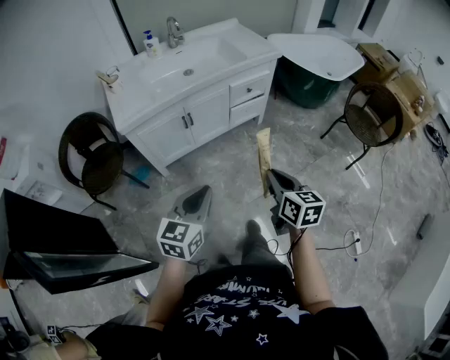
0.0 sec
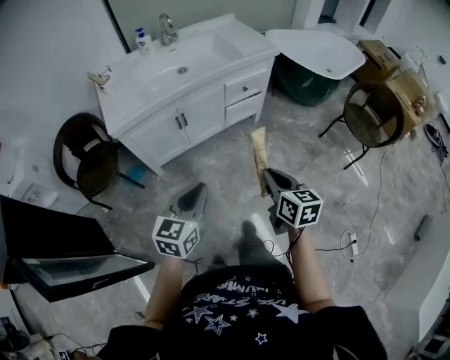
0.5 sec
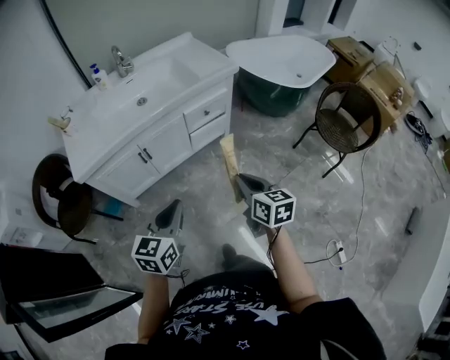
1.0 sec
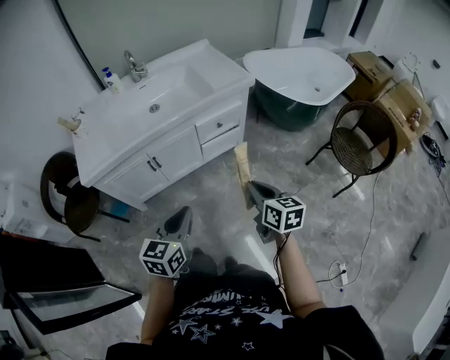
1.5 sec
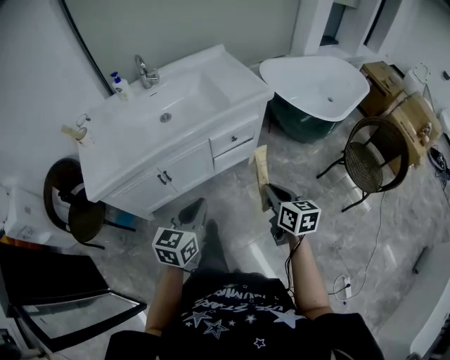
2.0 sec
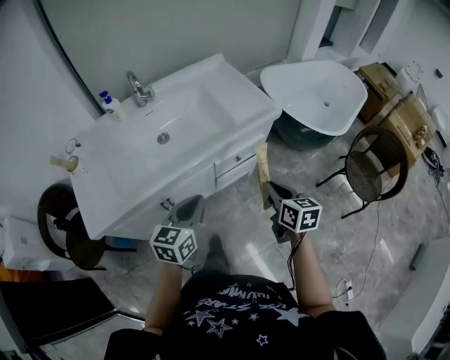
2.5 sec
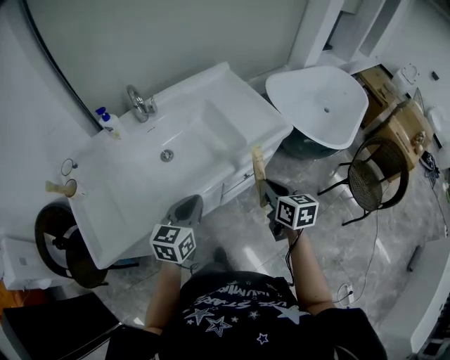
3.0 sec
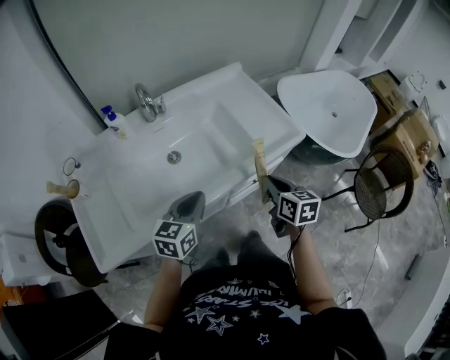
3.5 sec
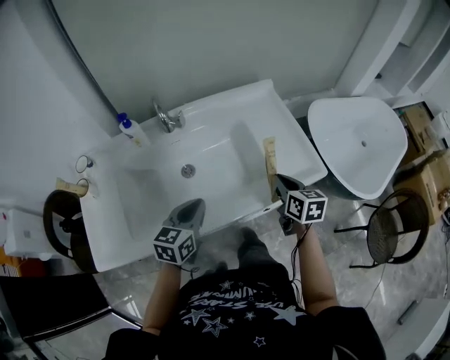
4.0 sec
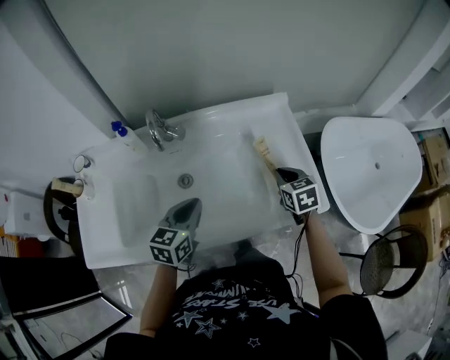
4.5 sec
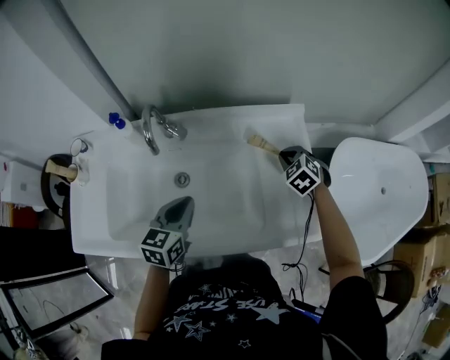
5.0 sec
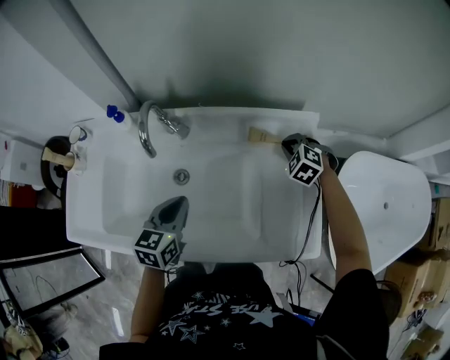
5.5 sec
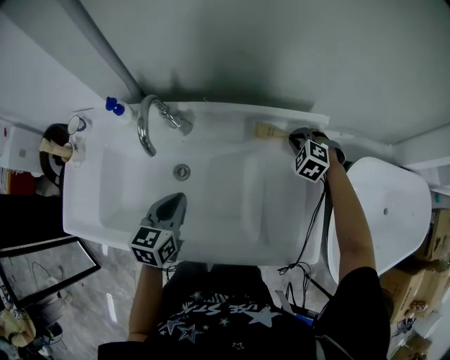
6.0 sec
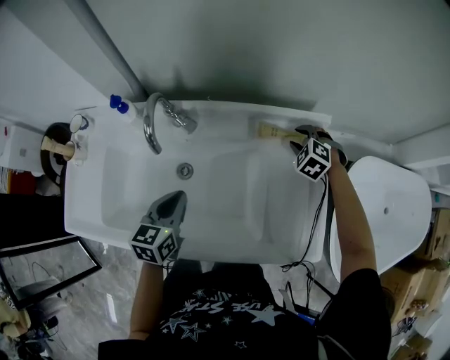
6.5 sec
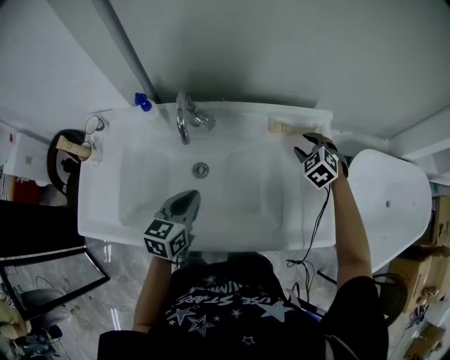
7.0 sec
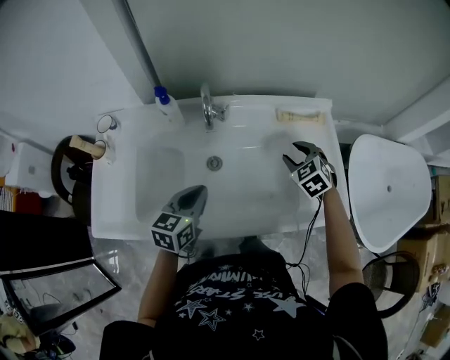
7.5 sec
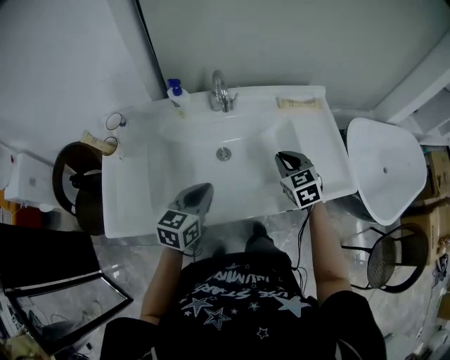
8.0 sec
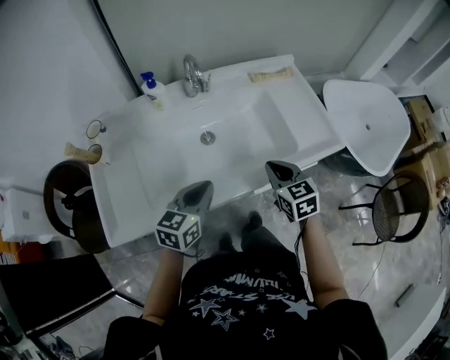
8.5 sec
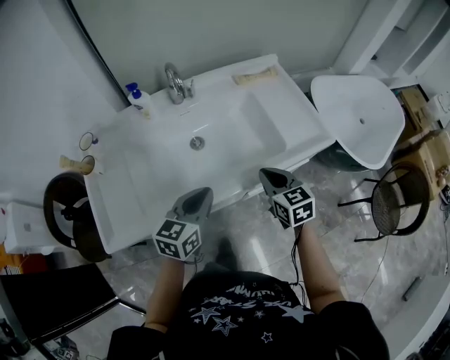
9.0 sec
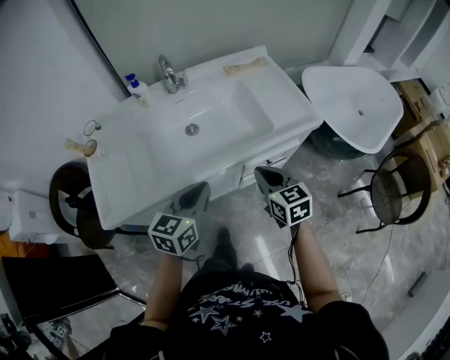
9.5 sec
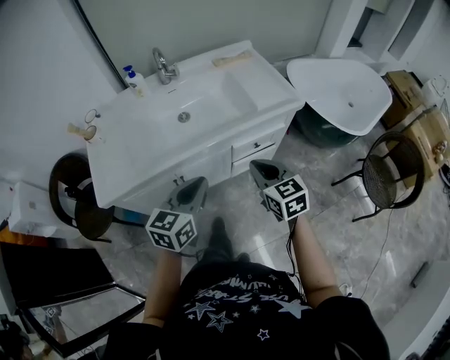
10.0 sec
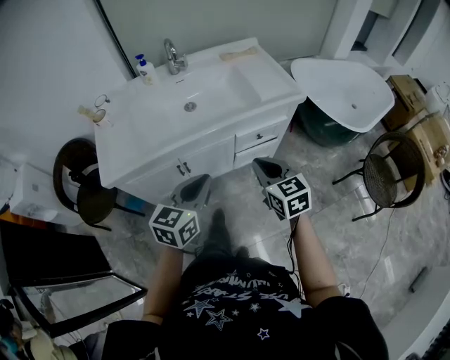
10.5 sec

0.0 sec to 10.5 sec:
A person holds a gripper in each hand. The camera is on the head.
0.0 sec to 2.0 sec: The two grippers go some 30 cm forward.
2.0 sec to 4.0 sec: The right gripper is displaced forward by roughly 40 cm. The left gripper is displaced forward and to the left by approximately 40 cm.
4.0 sec to 6.5 sec: The right gripper moves forward, approximately 35 cm, twists some 90 degrees counterclockwise, seen from behind, and opens its fingers; the left gripper shifts approximately 15 cm forward, and rotates roughly 30 degrees.
6.5 sec to 8.5 sec: The right gripper goes some 40 cm backward and to the left, rolls clockwise, seen from behind, by roughly 60 degrees, and closes its fingers. Meanwhile the left gripper goes about 20 cm backward and to the left, and rotates about 30 degrees.
8.5 sec to 10.5 sec: The left gripper heads backward and to the right, covering approximately 25 cm. The right gripper shifts roughly 25 cm backward.

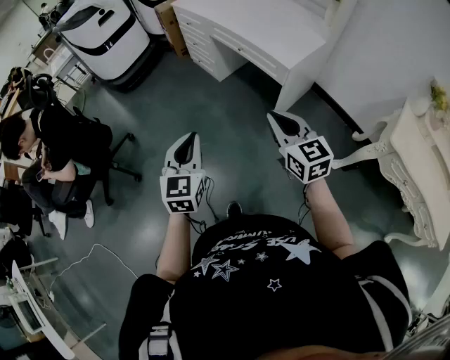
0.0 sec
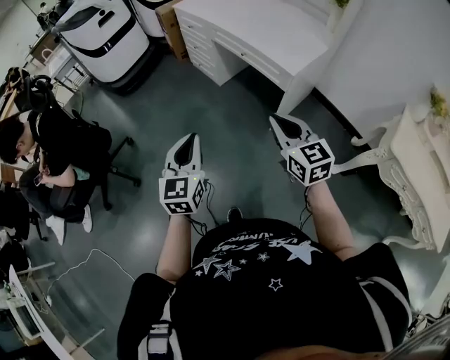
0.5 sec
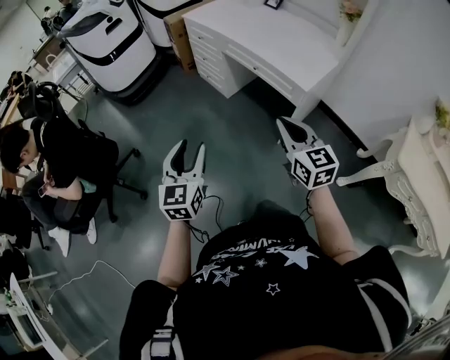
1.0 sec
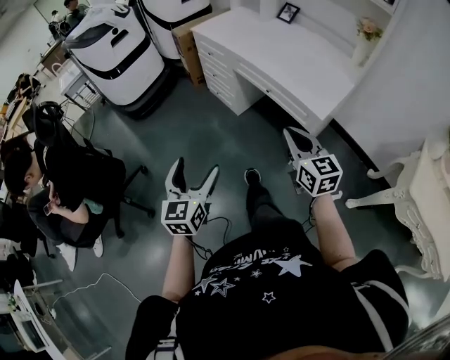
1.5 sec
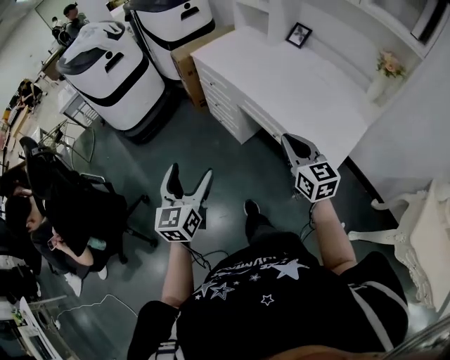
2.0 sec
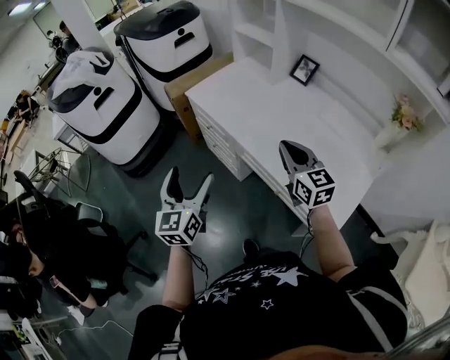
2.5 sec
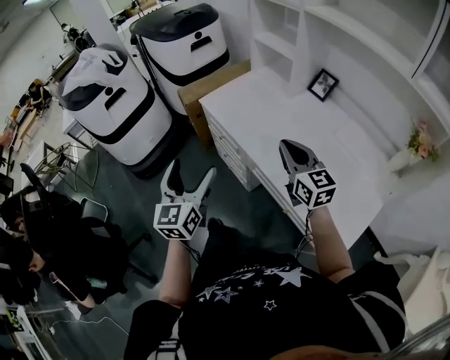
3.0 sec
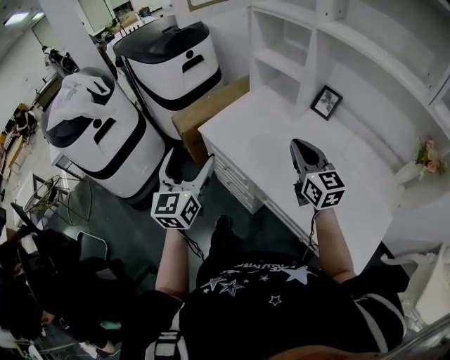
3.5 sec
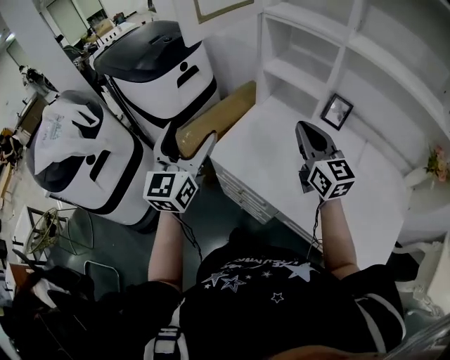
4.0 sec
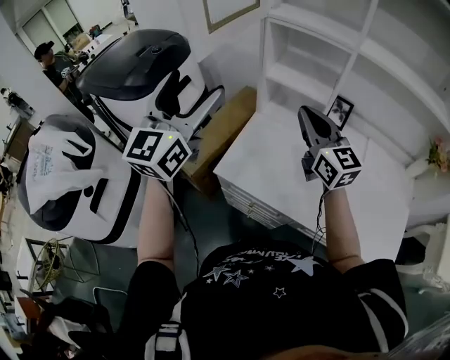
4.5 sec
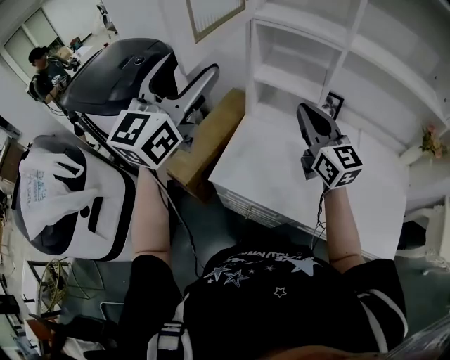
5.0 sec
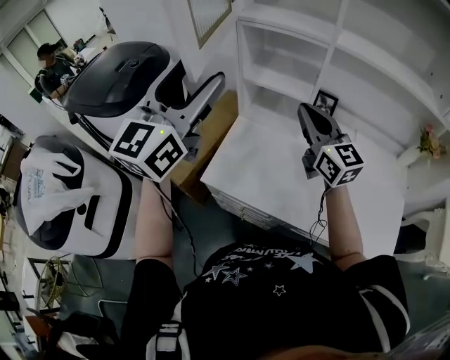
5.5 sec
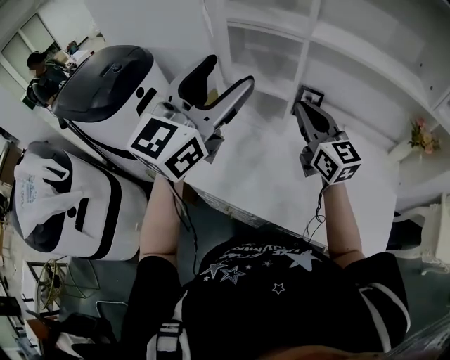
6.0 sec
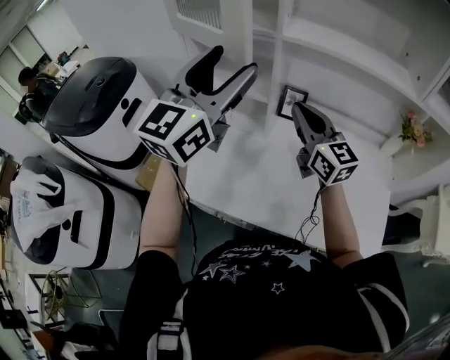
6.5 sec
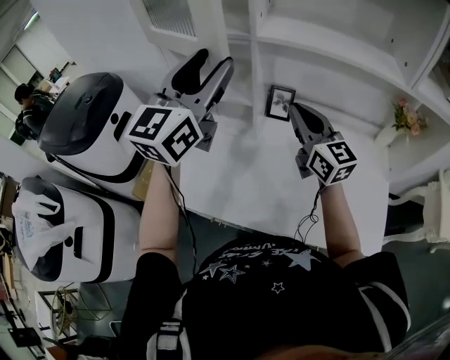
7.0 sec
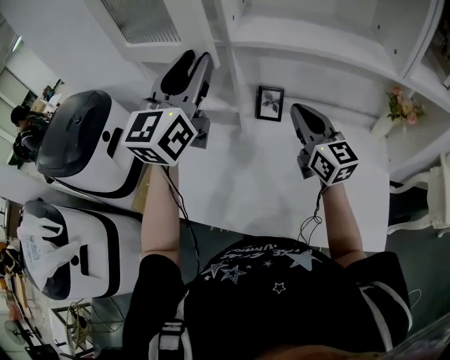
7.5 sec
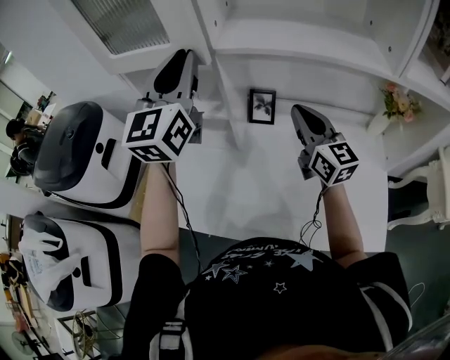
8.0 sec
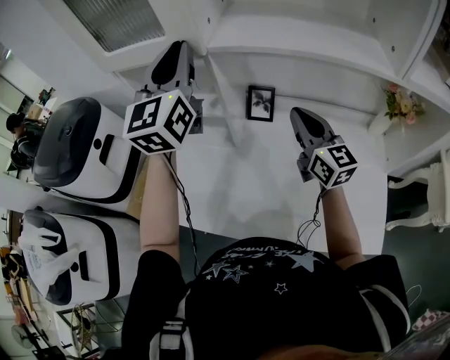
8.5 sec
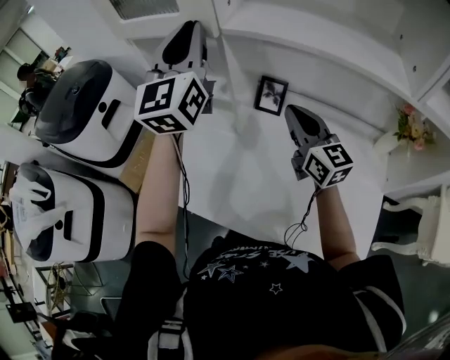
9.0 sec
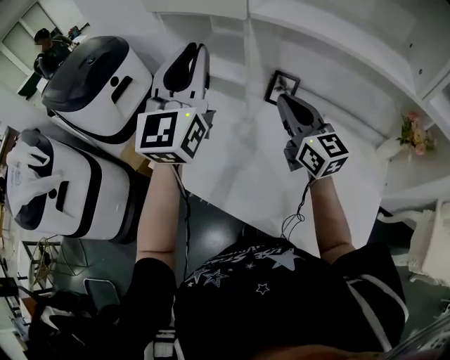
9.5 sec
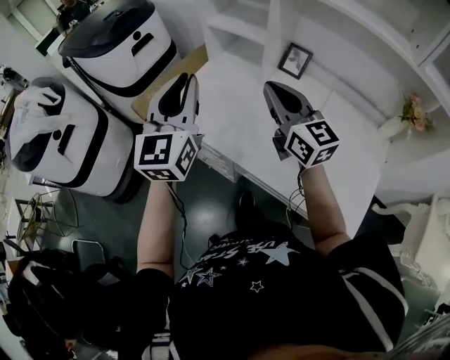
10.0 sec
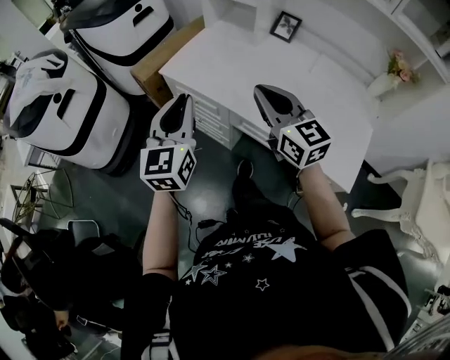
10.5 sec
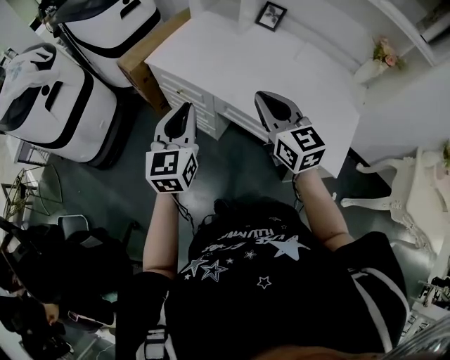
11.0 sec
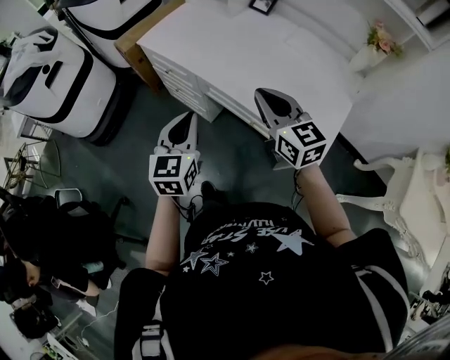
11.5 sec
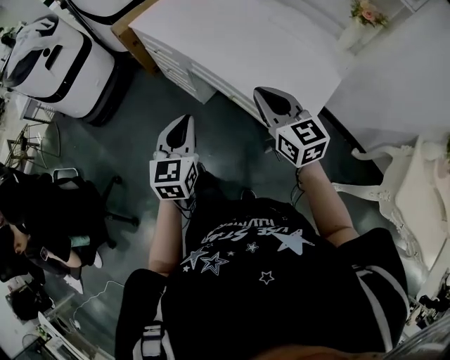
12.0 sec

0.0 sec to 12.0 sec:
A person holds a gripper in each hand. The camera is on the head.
0.0 sec to 2.0 sec: Both grippers travel together forward, approximately 40 cm. The left gripper opens its fingers.
2.0 sec to 4.0 sec: The two grippers travel together, forward, some 60 cm. The left gripper rotates roughly 30 degrees.
4.0 sec to 6.0 sec: The right gripper goes some 10 cm forward and to the right. Meanwhile the left gripper is displaced to the right, upward and forward by approximately 25 cm, and swivels about 40 degrees.
6.0 sec to 8.0 sec: The right gripper is displaced to the right by about 20 cm, while the left gripper is displaced forward and to the right by roughly 20 cm, and closes its fingers.
8.0 sec to 10.0 sec: The right gripper changes place by about 25 cm, and changes its angle by roughly 30 degrees, while the left gripper shifts by about 35 cm, and swivels approximately 30 degrees.
10.0 sec to 12.0 sec: The pair of grippers is taken backward, about 50 cm. The left gripper shifts some 20 cm downward, and rotates about 30 degrees.

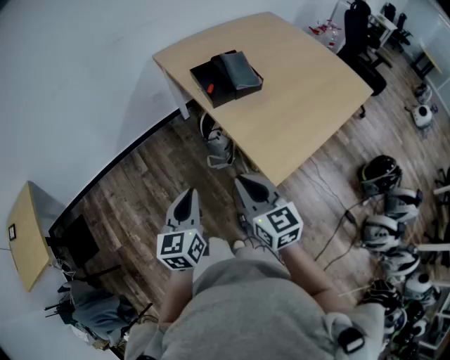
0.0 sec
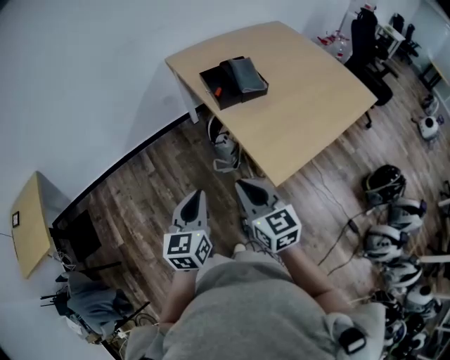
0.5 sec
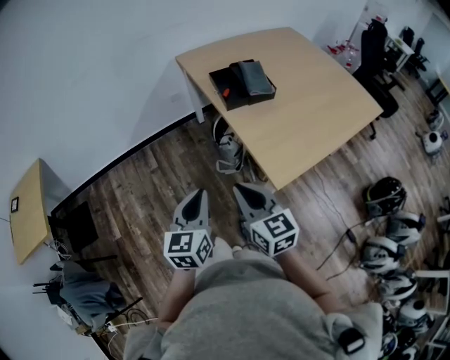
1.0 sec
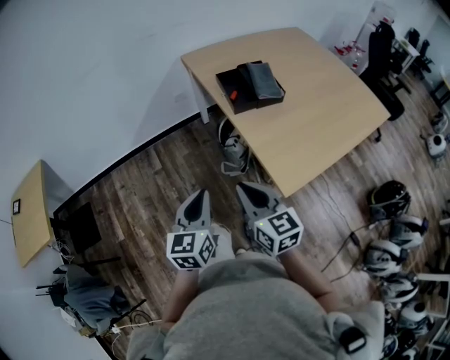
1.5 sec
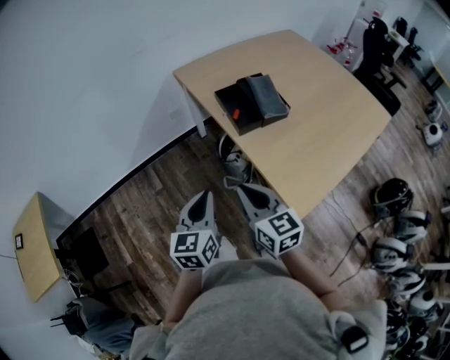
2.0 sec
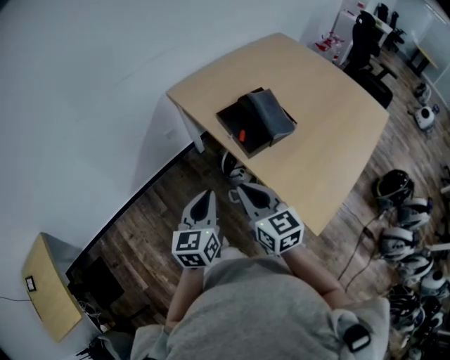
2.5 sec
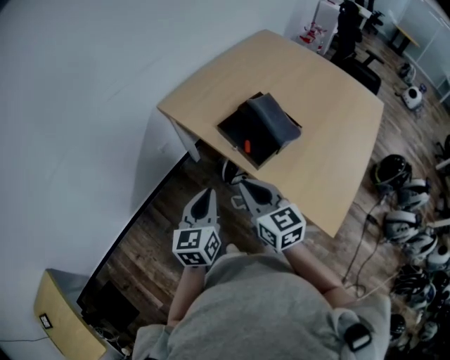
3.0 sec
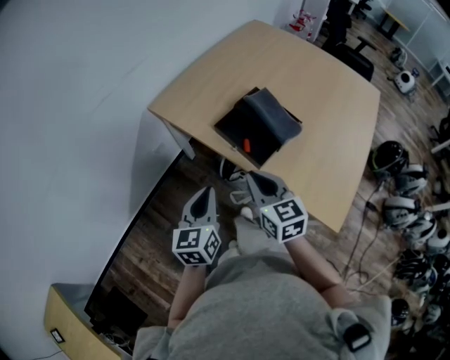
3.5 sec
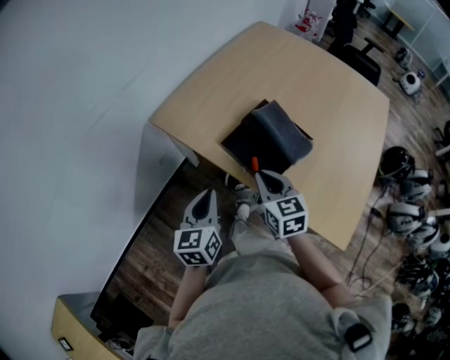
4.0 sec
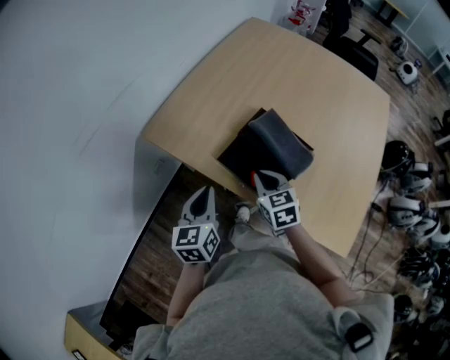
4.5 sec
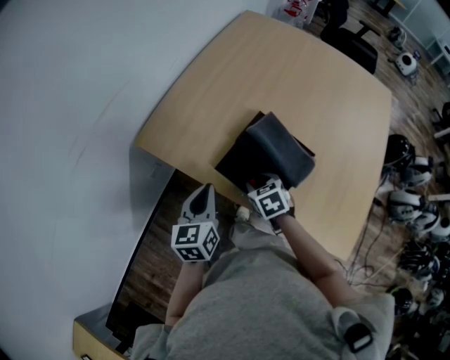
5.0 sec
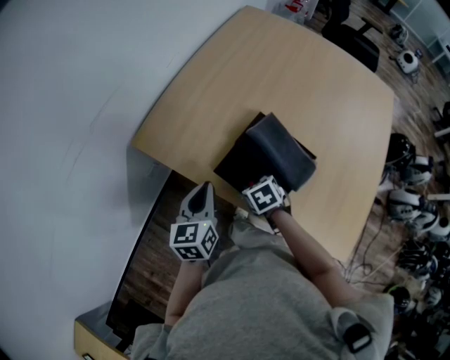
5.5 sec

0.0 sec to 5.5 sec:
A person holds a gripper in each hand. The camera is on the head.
0.0 sec to 2.0 sec: The left gripper goes some 10 cm forward. Meanwhile the right gripper is displaced forward and to the left by roughly 10 cm.
2.0 sec to 3.5 sec: Both grippers move forward, approximately 25 cm. The right gripper swivels about 20 degrees.
3.5 sec to 5.5 sec: The right gripper shifts approximately 25 cm downward and forward, tilts its fingers about 50 degrees downward, and opens its fingers, while the left gripper moves forward, about 20 cm.
